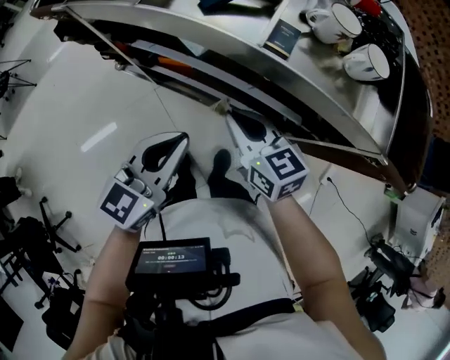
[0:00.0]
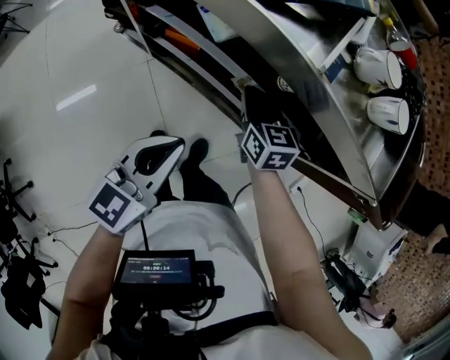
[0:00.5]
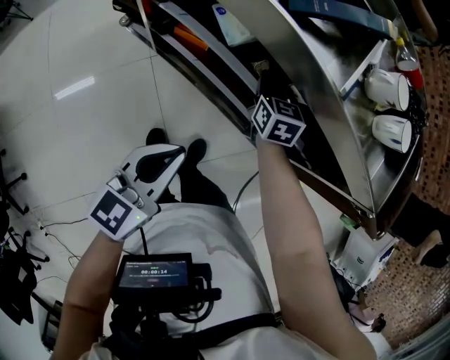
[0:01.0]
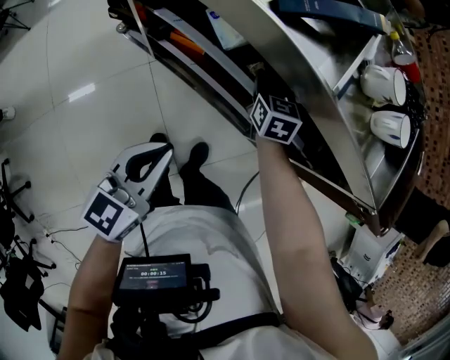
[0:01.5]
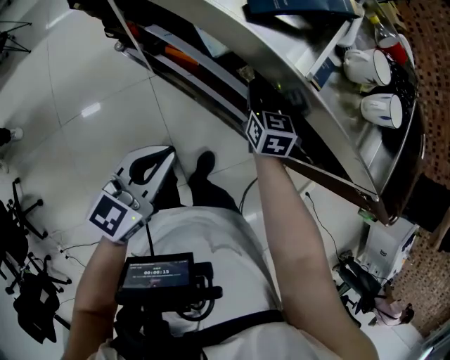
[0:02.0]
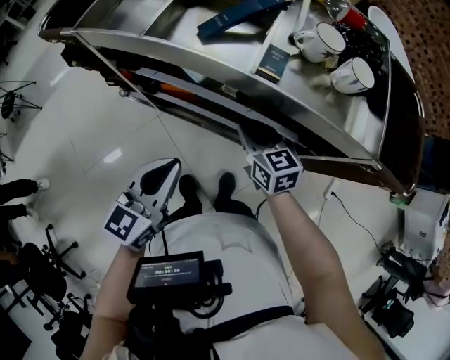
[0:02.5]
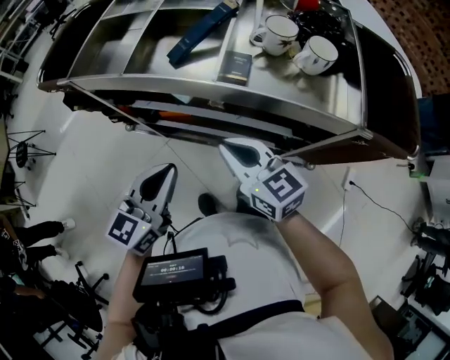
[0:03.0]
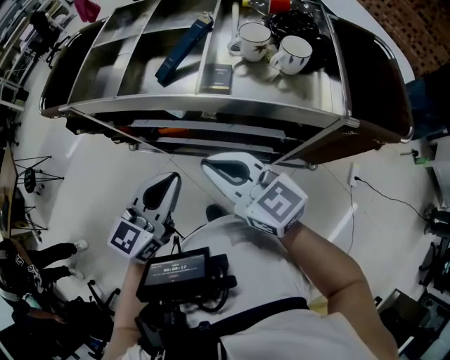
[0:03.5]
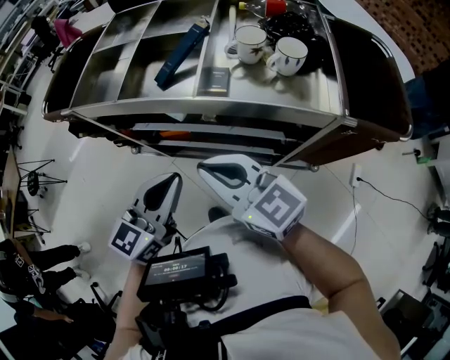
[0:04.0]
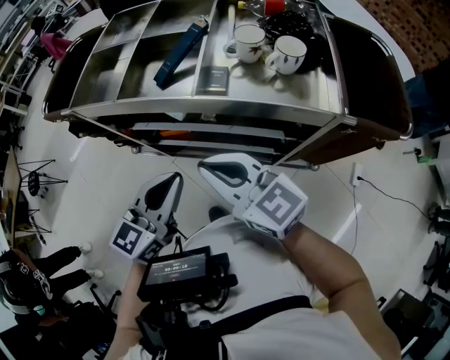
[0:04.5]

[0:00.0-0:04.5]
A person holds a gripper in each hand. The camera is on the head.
0:00.0 to 0:02.0: The left gripper shifts about 5 cm to the left, while the right gripper travels forward and downward by about 15 cm, and turns by some 20 degrees.
0:02.0 to 0:04.5: The left gripper travels upward and to the right by roughly 15 cm. The right gripper shifts about 30 cm upward and backward, and turns by about 40 degrees.

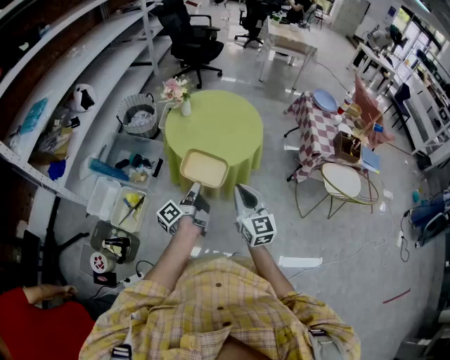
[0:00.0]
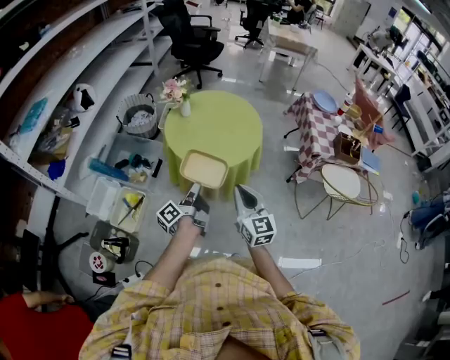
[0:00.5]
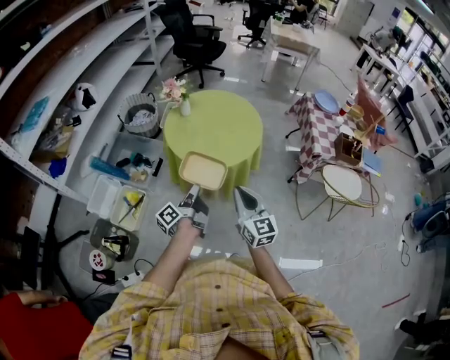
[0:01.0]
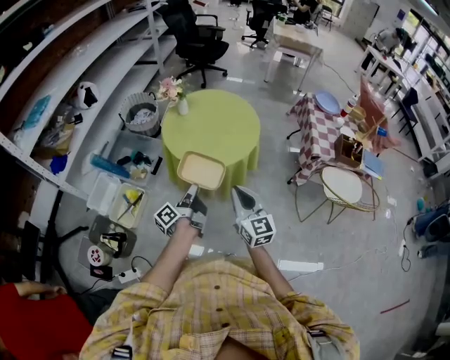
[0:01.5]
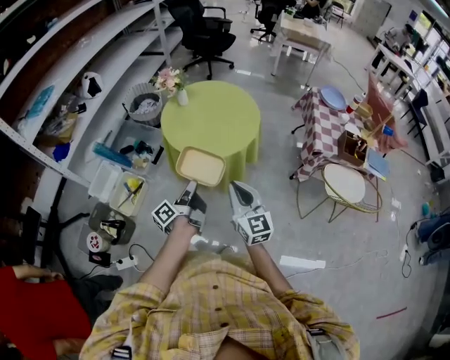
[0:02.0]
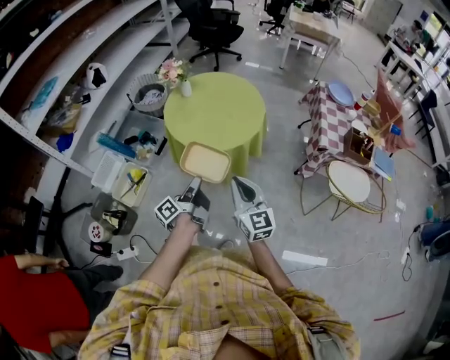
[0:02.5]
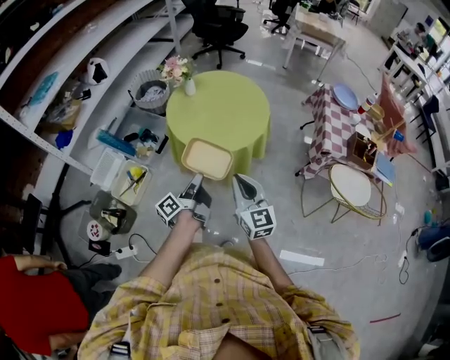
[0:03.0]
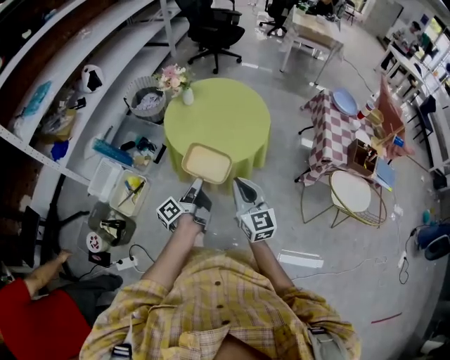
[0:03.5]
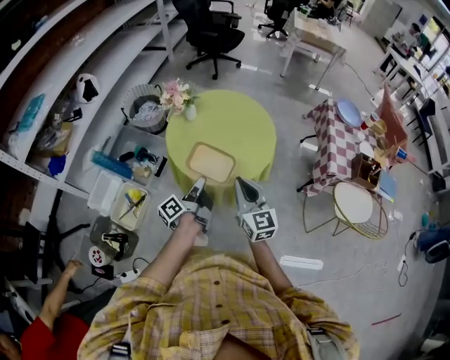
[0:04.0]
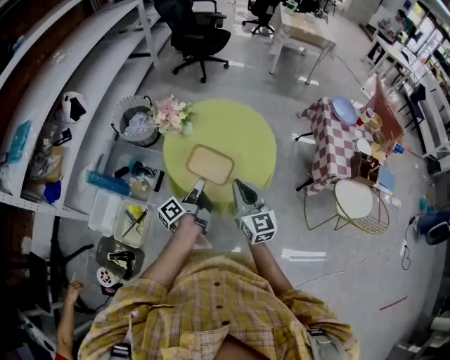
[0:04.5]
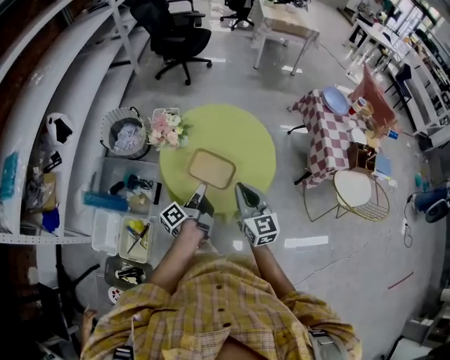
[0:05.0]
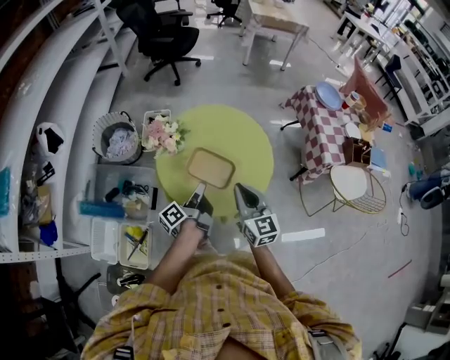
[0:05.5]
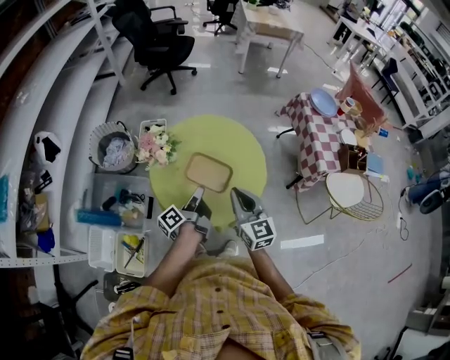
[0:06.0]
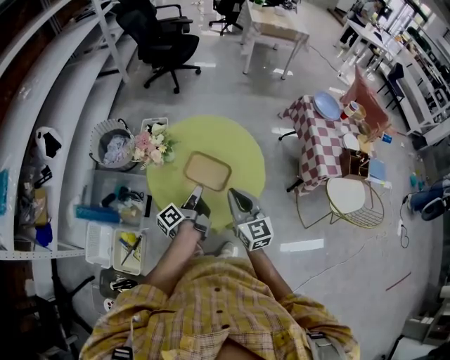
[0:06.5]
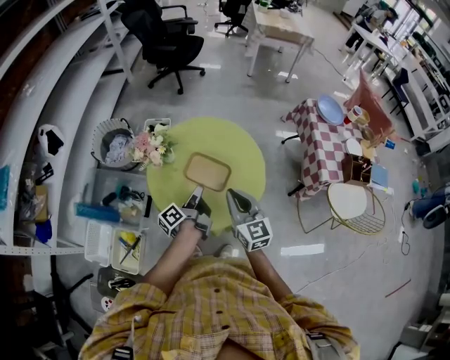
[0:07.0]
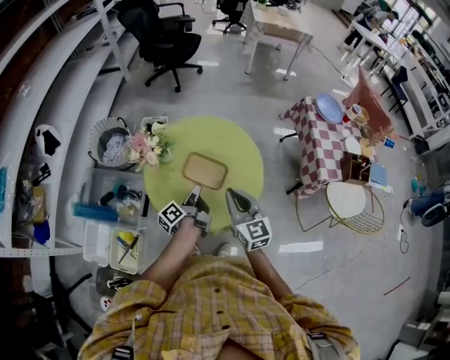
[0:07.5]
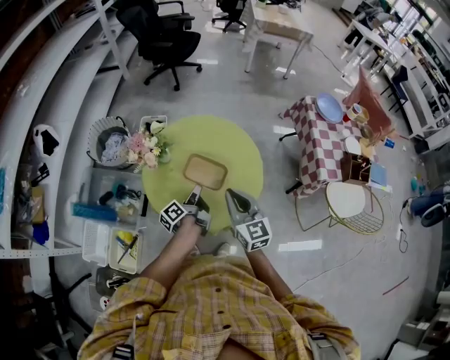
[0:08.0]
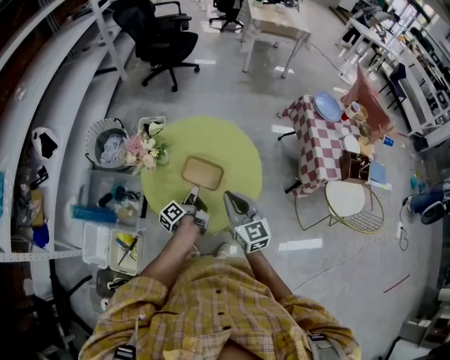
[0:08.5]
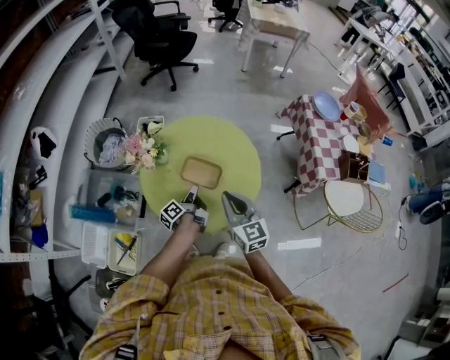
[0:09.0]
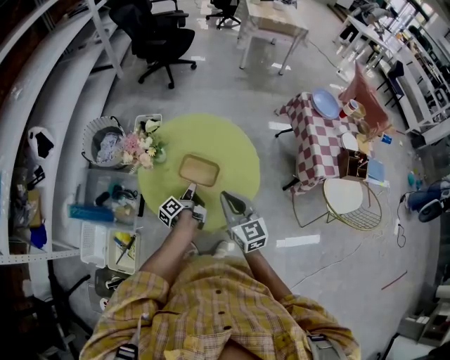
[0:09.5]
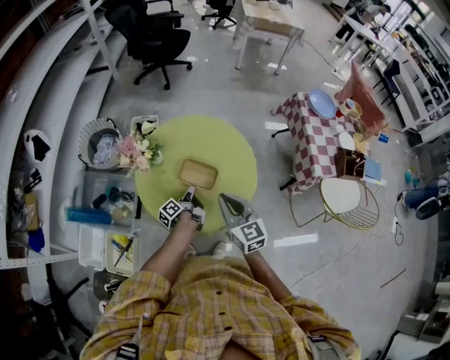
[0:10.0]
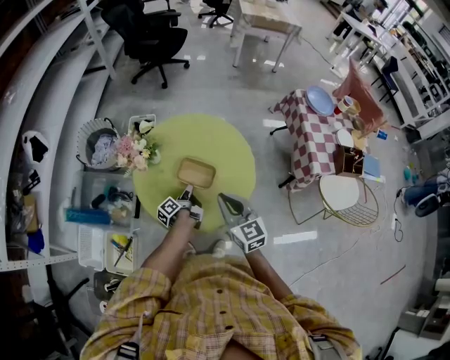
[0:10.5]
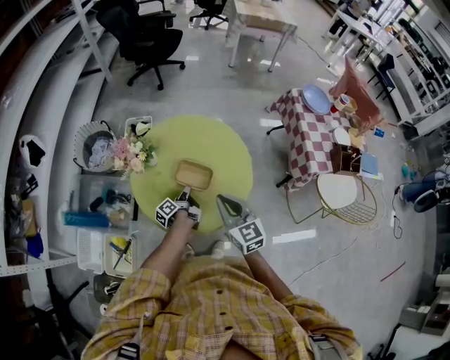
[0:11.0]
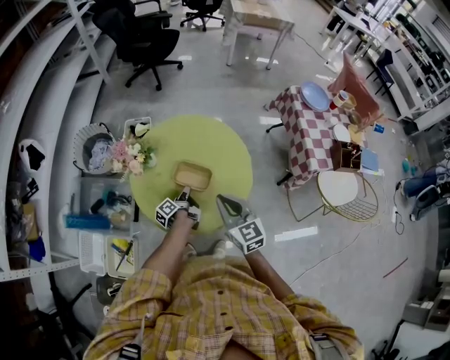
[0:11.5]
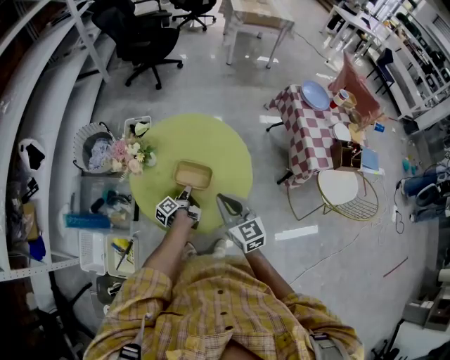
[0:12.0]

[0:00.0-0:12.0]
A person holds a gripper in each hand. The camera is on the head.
0:00.0 to 0:02.0: The right gripper changes place by roughly 10 cm.
0:02.0 to 0:04.0: The right gripper ends up roughly 20 cm from where it was.
0:04.0 to 0:06.0: The right gripper ends up approximately 15 cm from where it was.
0:06.0 to 0:08.0: The right gripper moves approximately 5 cm.

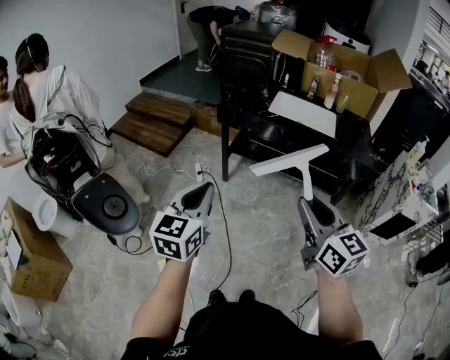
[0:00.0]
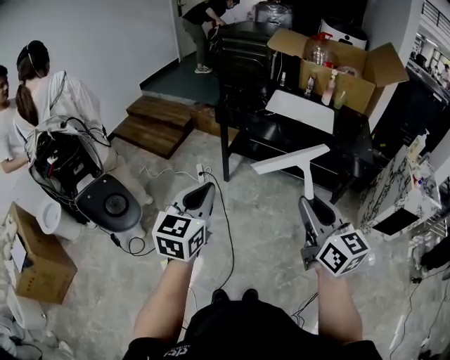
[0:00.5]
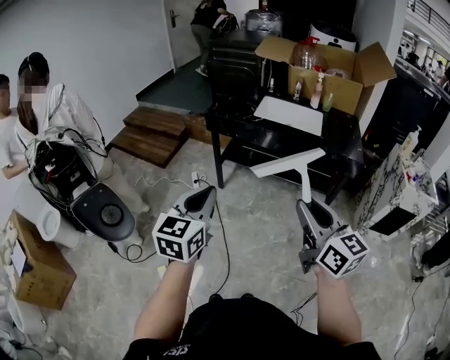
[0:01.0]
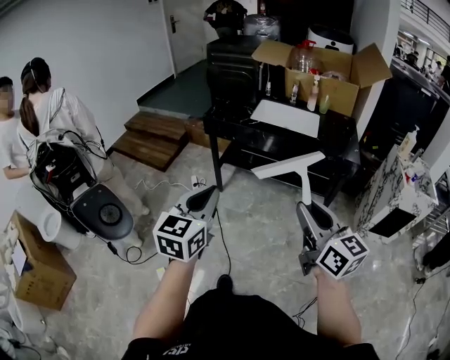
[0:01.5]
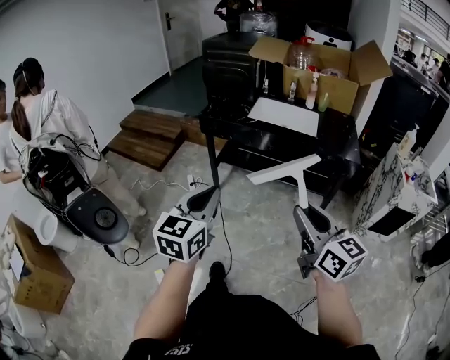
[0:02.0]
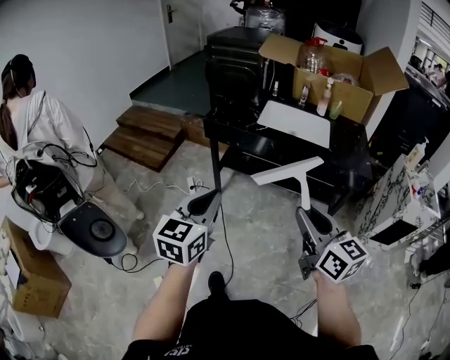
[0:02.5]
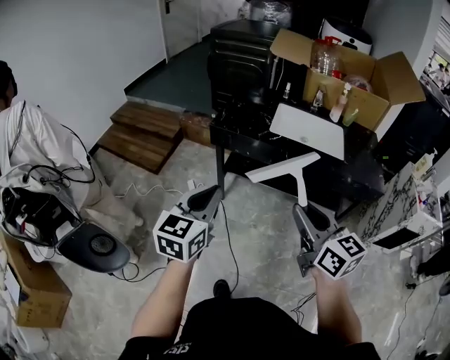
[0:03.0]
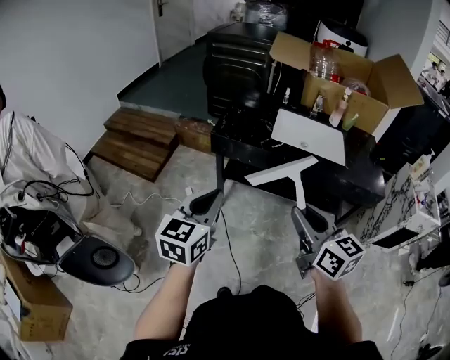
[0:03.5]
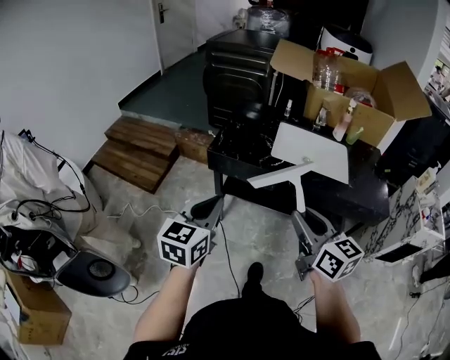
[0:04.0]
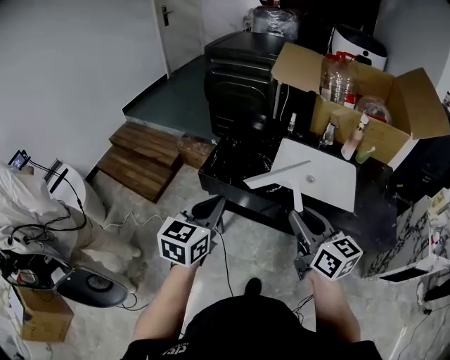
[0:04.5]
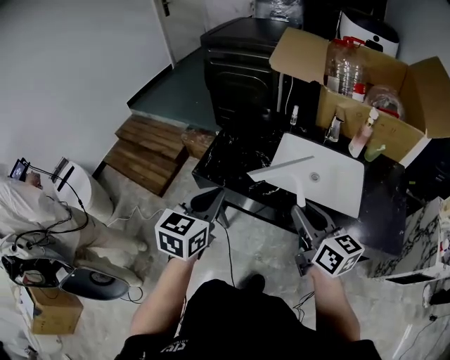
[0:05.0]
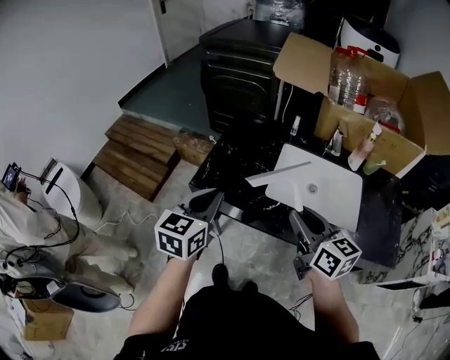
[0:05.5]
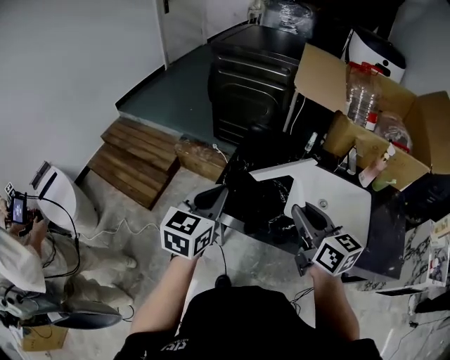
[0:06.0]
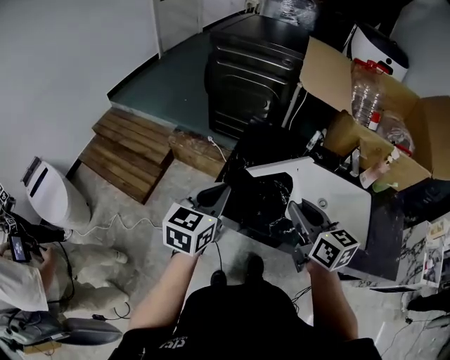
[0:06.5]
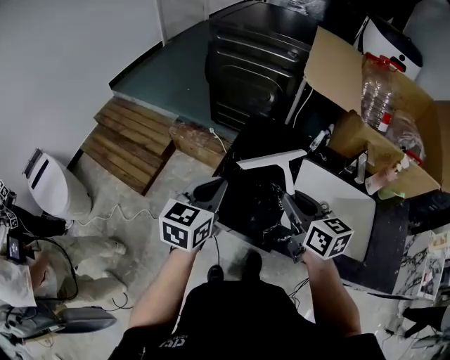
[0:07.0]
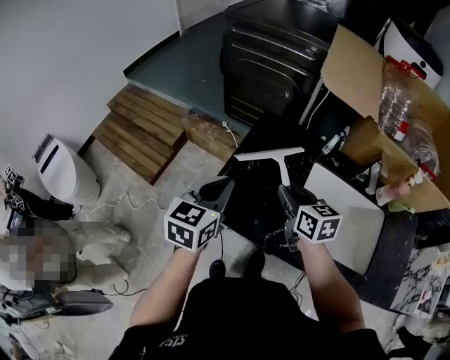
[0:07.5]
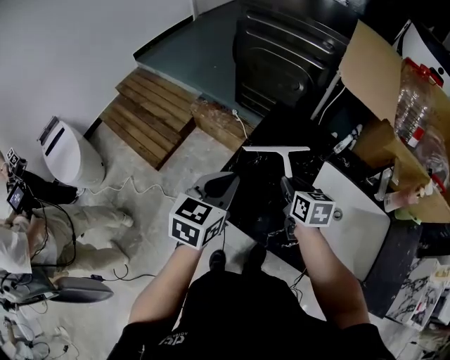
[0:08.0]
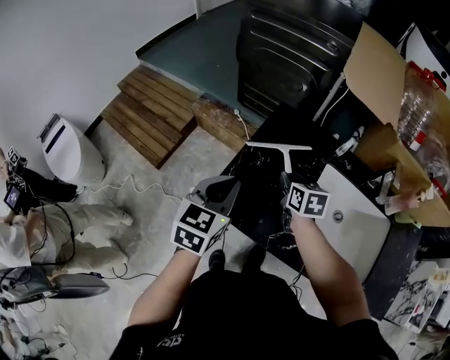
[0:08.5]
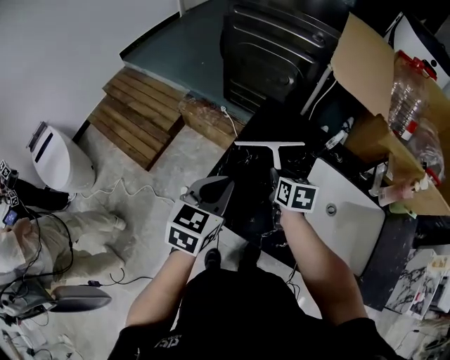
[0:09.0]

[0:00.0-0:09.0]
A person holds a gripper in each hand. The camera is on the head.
0:00.0 to 0:02.0: Both grippers travel together to the right, about 10 cm.
0:02.0 to 0:04.5: The two grippers travel together, forward, about 50 cm.
0:04.5 to 0:07.0: Both grippers travel together forward, some 30 cm.
0:07.0 to 0:09.0: The right gripper moves downward and forward, roughly 20 cm, and rotates approximately 30 degrees; the left gripper shifts by some 5 cm.

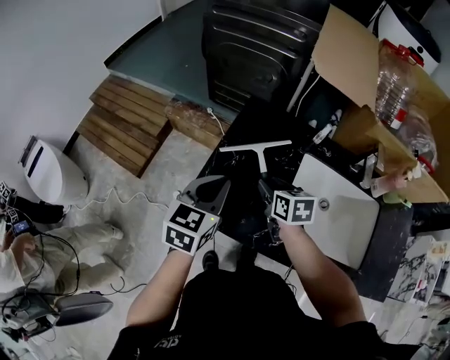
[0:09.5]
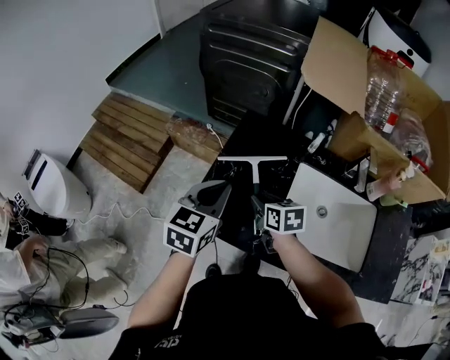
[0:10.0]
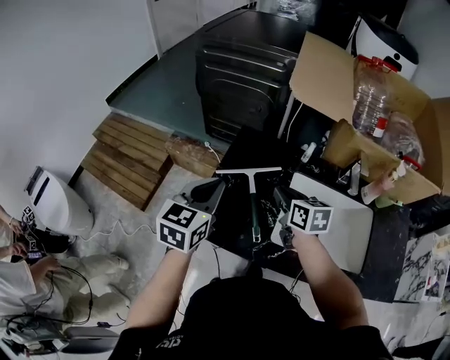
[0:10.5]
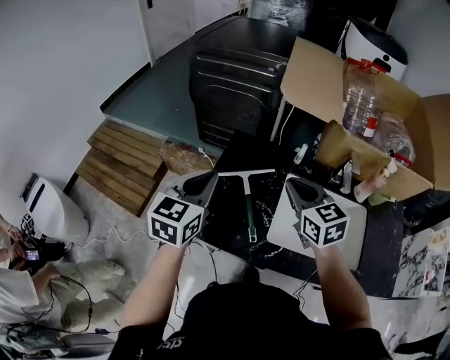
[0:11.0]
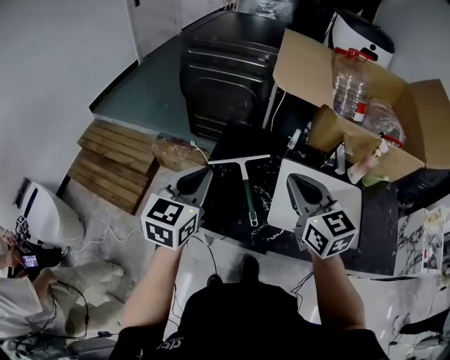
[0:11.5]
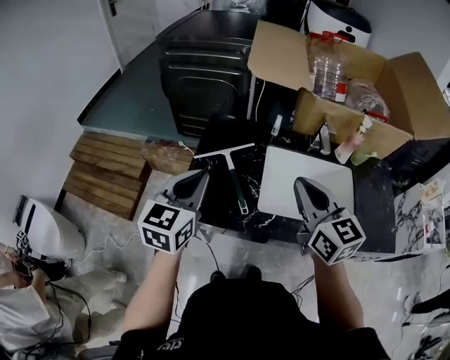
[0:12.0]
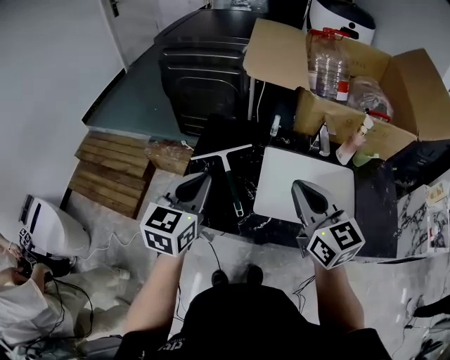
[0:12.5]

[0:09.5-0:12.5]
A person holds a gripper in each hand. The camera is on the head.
0:09.5 to 0:11.0: The right gripper shifts approximately 20 cm upward, changes its angle by about 30 degrees, and closes up, while the left gripper travels upward by about 10 cm.
0:11.0 to 0:12.5: The left gripper goes roughly 10 cm backward and to the right. Meanwhile the right gripper moves backward, to the right and upward, about 15 cm.
